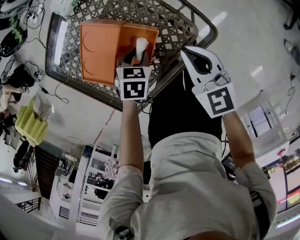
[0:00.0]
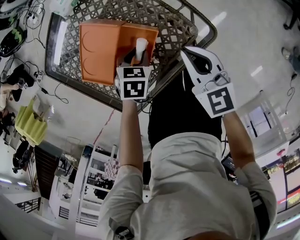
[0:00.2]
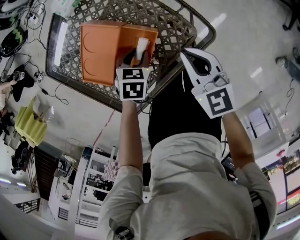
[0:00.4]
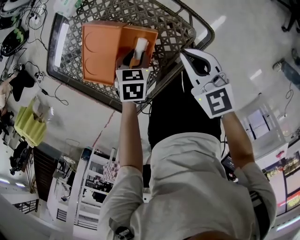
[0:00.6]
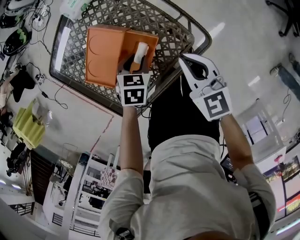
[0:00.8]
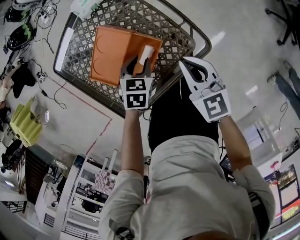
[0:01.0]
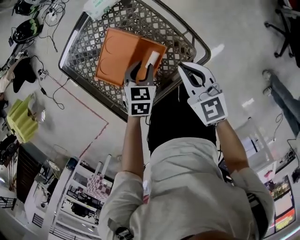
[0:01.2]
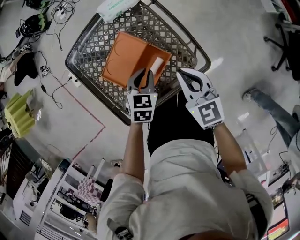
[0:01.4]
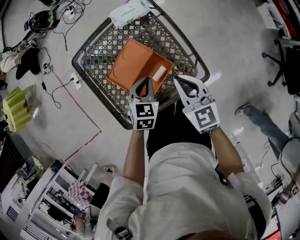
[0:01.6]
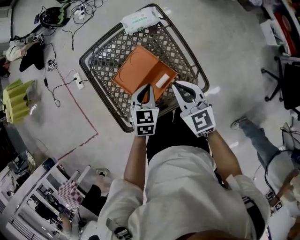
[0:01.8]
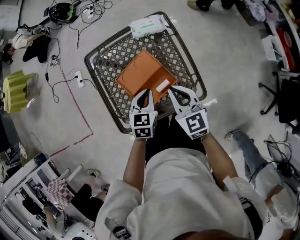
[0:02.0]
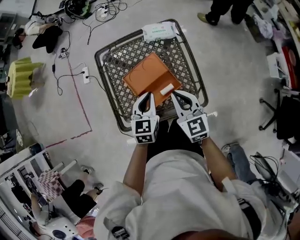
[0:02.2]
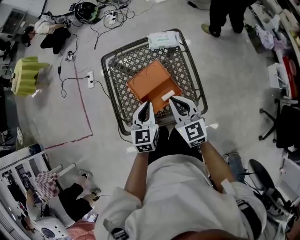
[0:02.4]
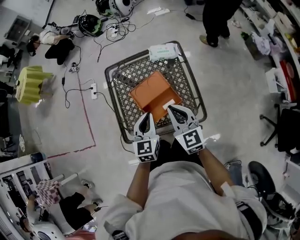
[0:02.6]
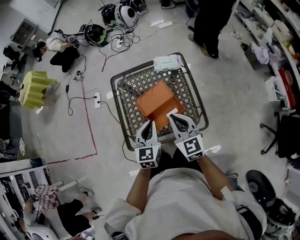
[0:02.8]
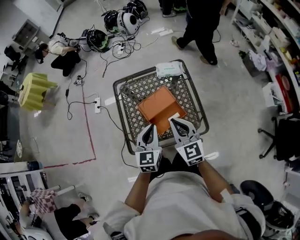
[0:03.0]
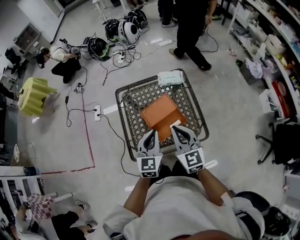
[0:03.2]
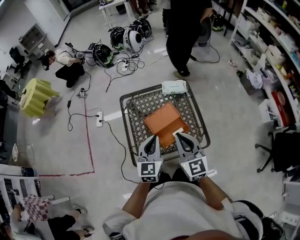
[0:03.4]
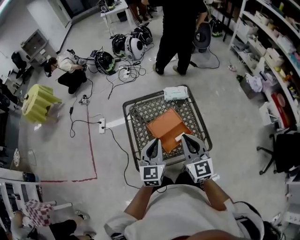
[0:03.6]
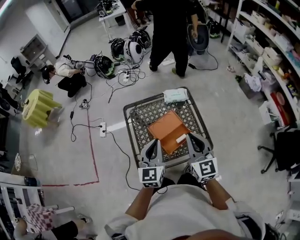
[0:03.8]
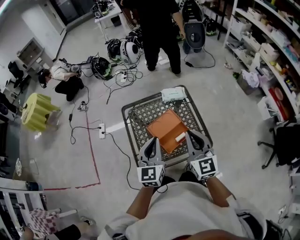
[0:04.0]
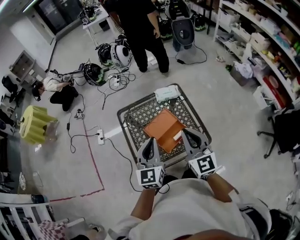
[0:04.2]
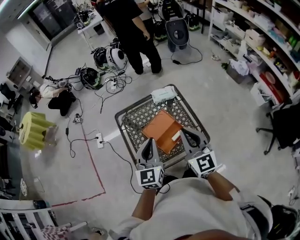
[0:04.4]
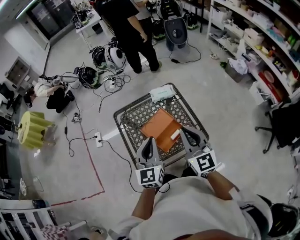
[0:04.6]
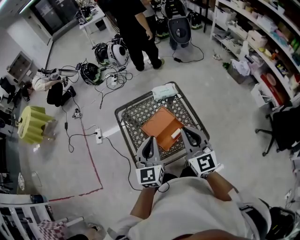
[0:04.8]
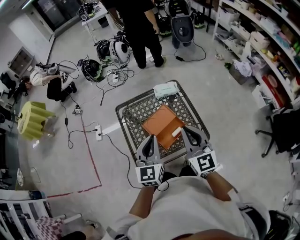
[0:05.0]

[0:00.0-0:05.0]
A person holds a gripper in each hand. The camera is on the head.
0:00.0 to 0:01.6: The grippers both shift upward by about 10 cm. The left gripper swivels approximately 30 degrees, and closes its fingers.
0:01.6 to 0:03.4: The grippers both shift upward and to the left by some 25 cm. The left gripper points its fingers some 30 degrees further upward.
0:03.4 to 0:05.0: The two grippers go about 5 cm upward.

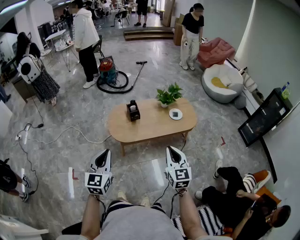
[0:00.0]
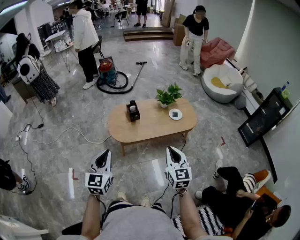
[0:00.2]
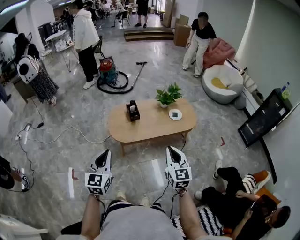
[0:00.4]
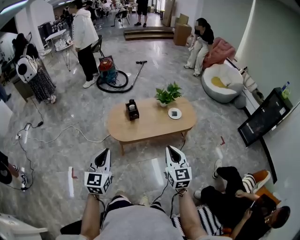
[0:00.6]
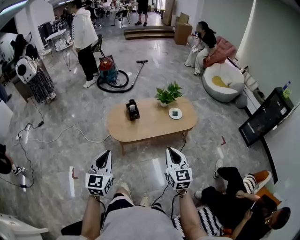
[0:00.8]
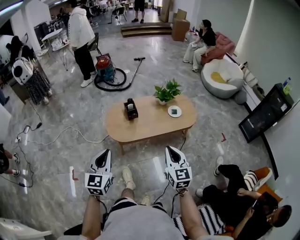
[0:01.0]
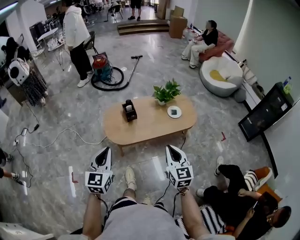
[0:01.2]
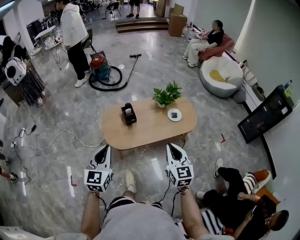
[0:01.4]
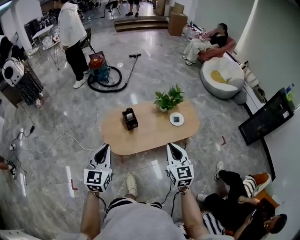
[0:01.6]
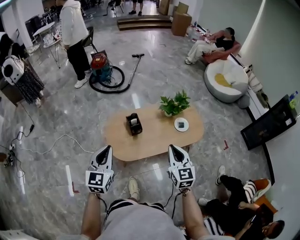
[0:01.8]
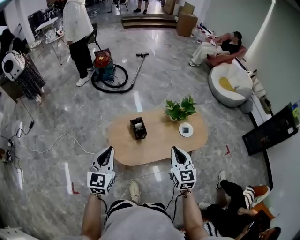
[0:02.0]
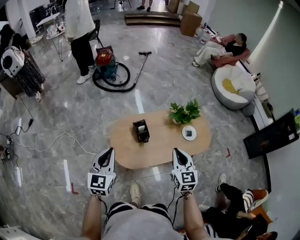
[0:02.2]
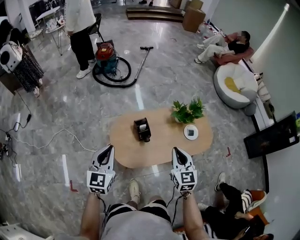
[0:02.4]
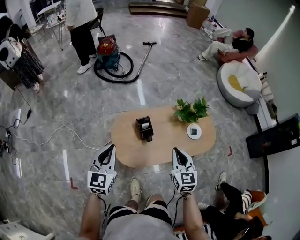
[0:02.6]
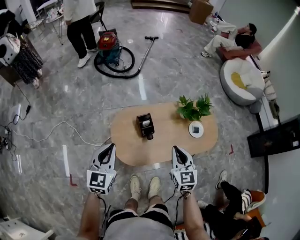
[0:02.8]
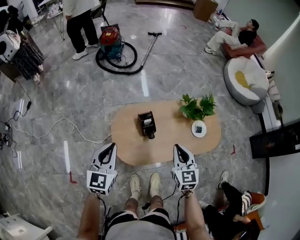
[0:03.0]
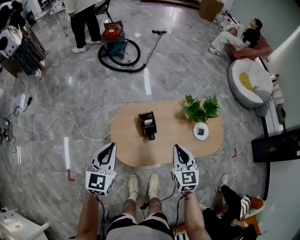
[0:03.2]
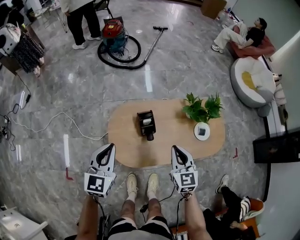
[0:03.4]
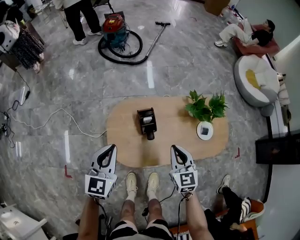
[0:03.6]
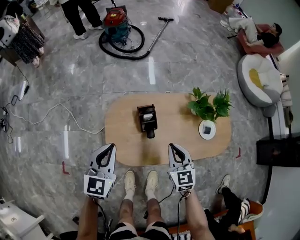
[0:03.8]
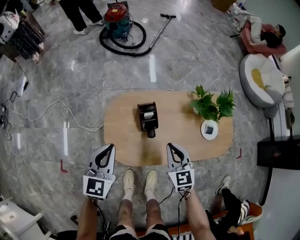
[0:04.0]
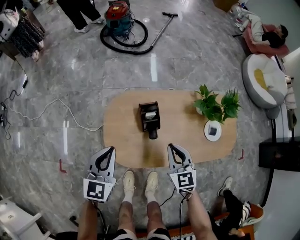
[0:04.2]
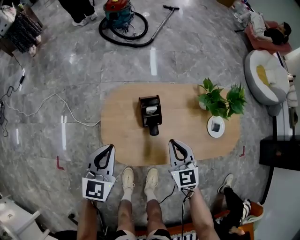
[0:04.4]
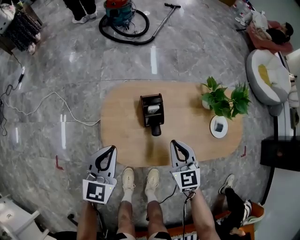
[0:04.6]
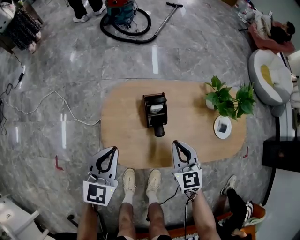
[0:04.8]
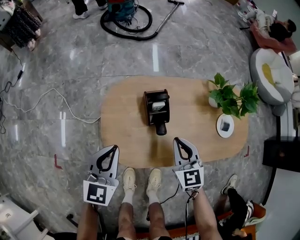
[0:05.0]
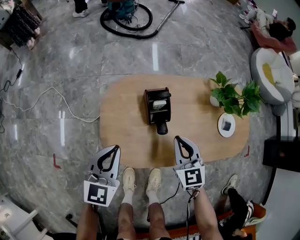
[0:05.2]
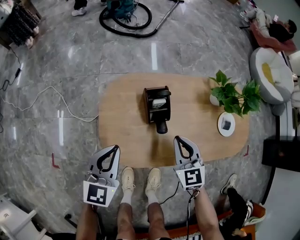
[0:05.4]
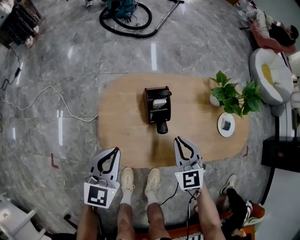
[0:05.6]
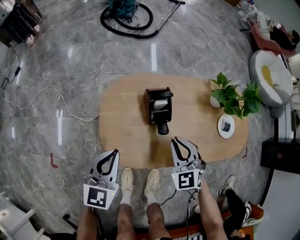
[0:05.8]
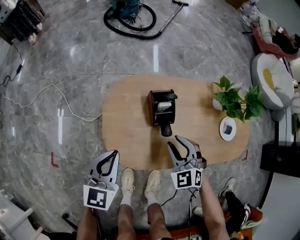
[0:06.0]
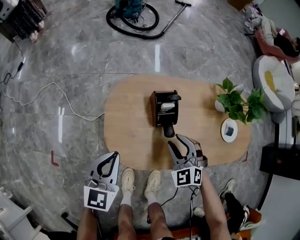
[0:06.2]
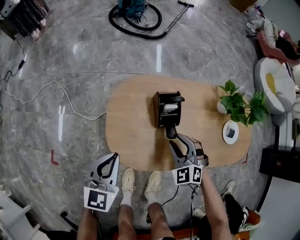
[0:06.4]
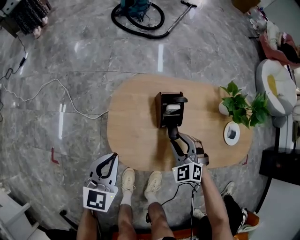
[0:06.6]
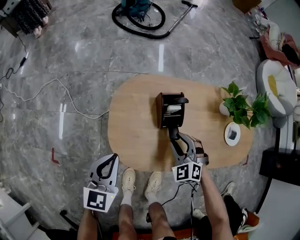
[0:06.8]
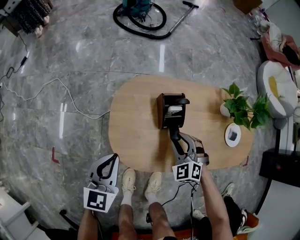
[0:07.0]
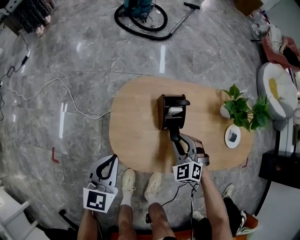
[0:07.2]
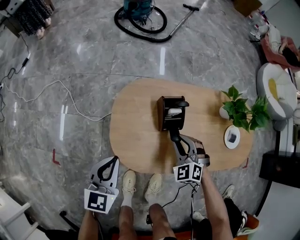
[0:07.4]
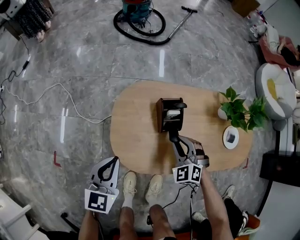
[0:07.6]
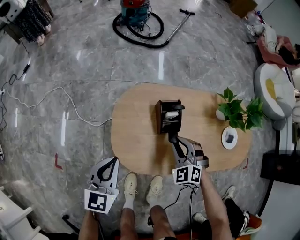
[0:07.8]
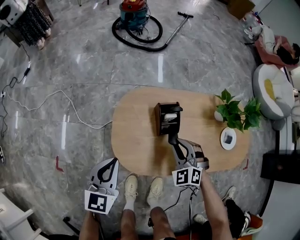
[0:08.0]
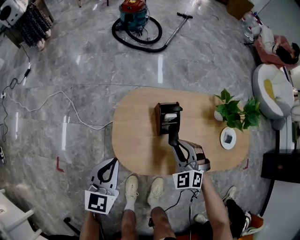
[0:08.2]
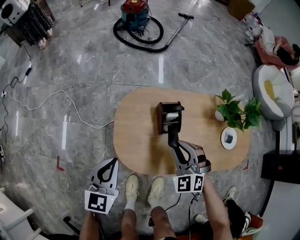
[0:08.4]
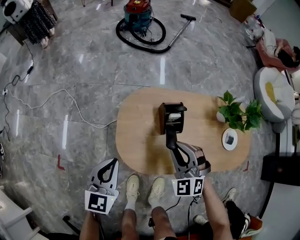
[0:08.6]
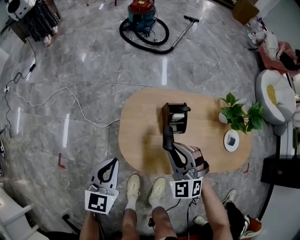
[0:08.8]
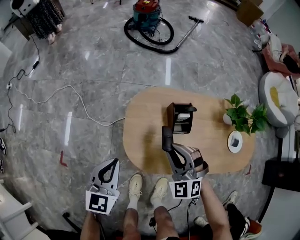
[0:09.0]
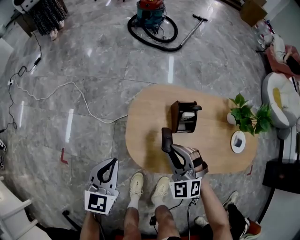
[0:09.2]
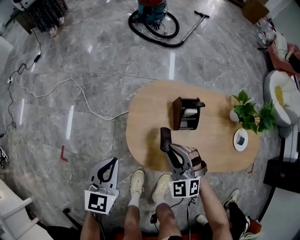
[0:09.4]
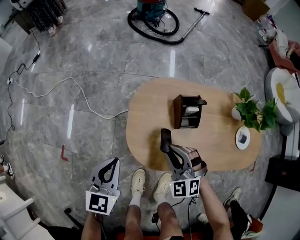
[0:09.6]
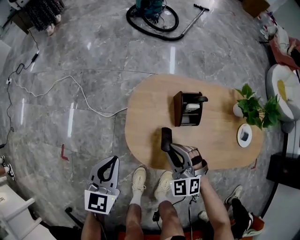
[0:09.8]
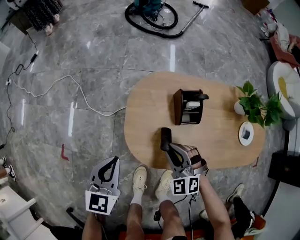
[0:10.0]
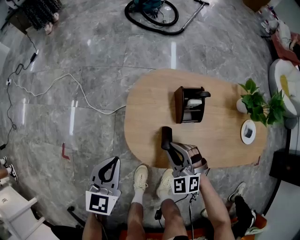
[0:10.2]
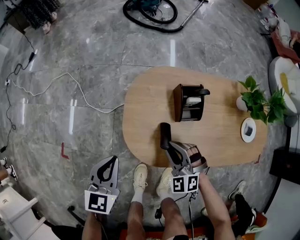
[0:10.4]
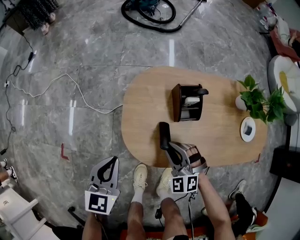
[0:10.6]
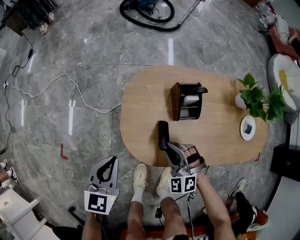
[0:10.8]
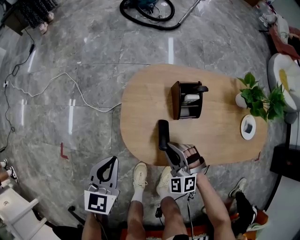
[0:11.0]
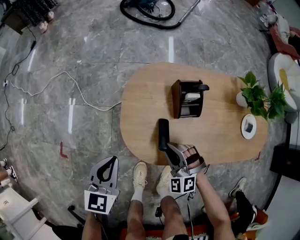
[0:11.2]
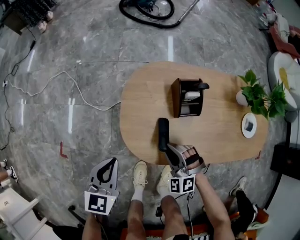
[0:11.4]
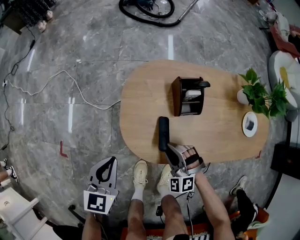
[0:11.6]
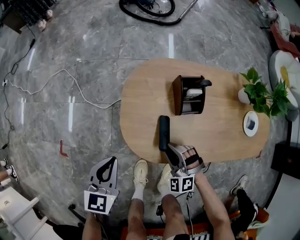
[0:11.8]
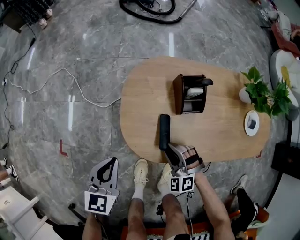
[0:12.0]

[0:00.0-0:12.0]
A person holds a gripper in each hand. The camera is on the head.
0:00.0 to 0:01.6: The grippers both shift forward by roughly 20 cm.
0:01.6 to 0:03.0: Both grippers travel together forward, downward and to the left, roughly 25 cm.
0:03.0 to 0:04.4: The two grippers go some 20 cm downward.
0:04.4 to 0:06.0: The two grippers go some 10 cm downward. The right gripper swivels approximately 30 degrees, and opens its fingers.
0:07.6 to 0:09.0: The right gripper moves upward and to the left, some 15 cm, while the left gripper travels to the left by roughly 5 cm.
0:09.0 to 0:10.4: The left gripper heads downward, covering about 5 cm; the right gripper shifts about 15 cm downward.
0:10.4 to 0:12.0: The right gripper is displaced downward by approximately 5 cm.

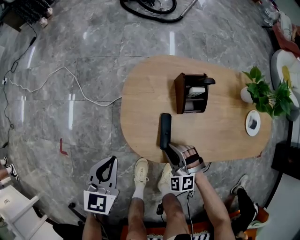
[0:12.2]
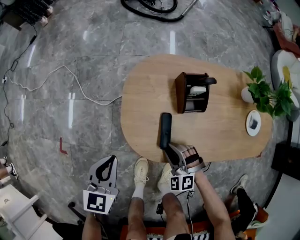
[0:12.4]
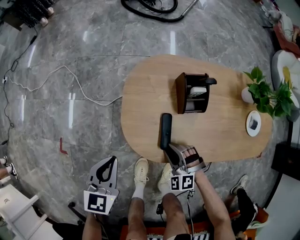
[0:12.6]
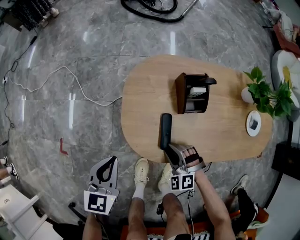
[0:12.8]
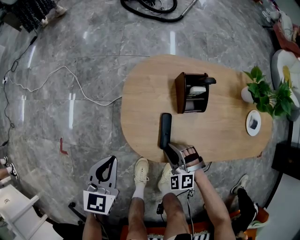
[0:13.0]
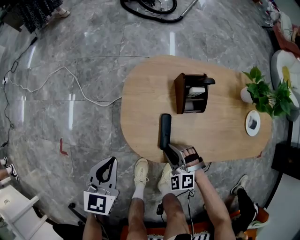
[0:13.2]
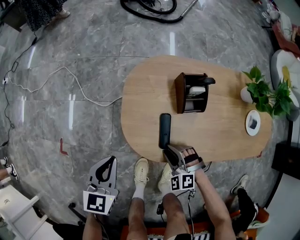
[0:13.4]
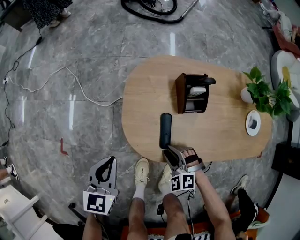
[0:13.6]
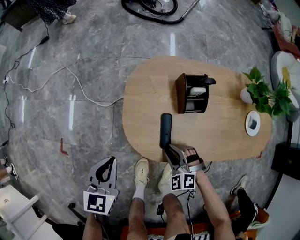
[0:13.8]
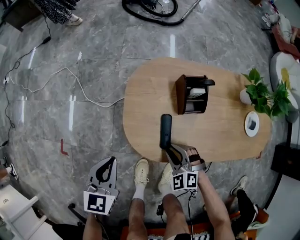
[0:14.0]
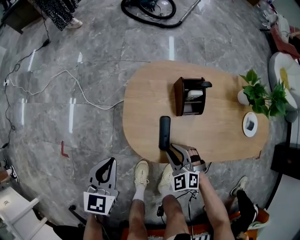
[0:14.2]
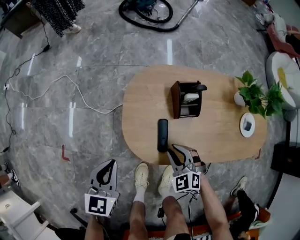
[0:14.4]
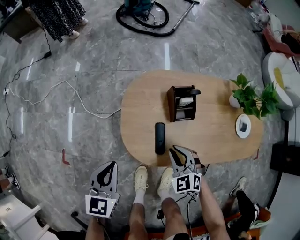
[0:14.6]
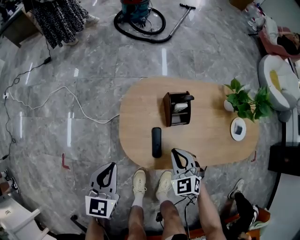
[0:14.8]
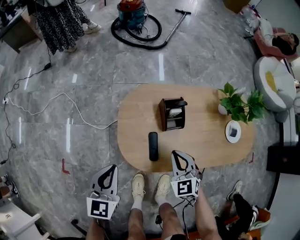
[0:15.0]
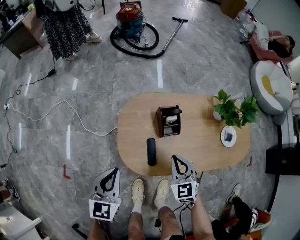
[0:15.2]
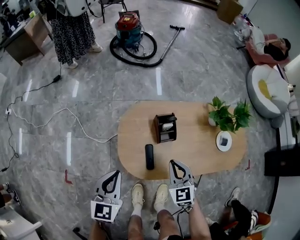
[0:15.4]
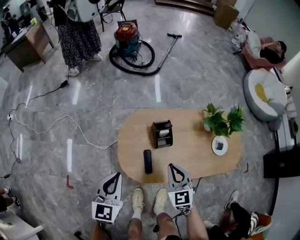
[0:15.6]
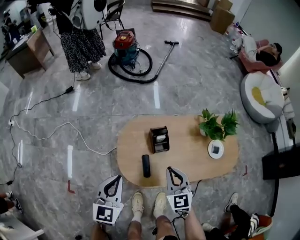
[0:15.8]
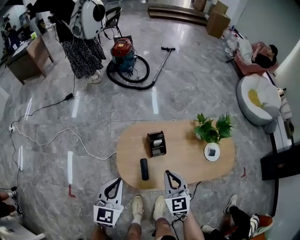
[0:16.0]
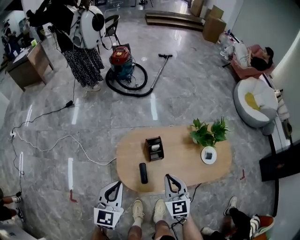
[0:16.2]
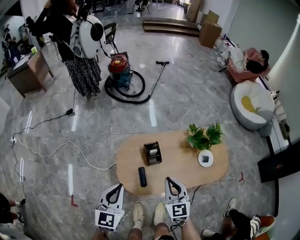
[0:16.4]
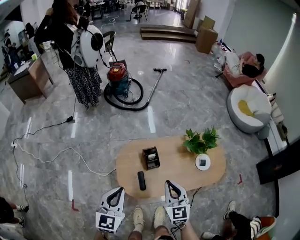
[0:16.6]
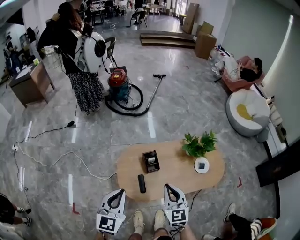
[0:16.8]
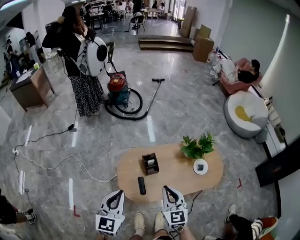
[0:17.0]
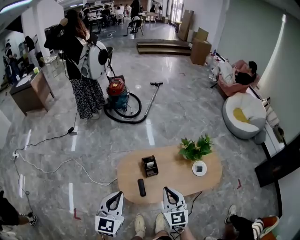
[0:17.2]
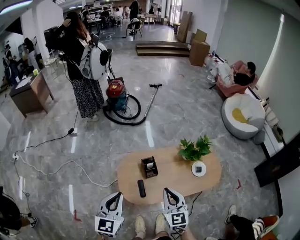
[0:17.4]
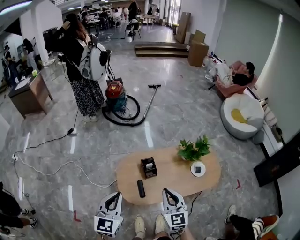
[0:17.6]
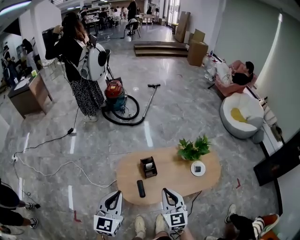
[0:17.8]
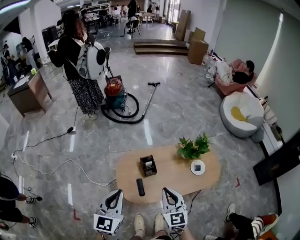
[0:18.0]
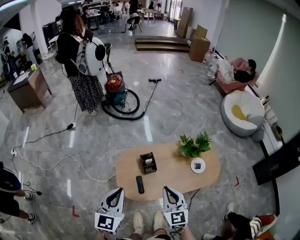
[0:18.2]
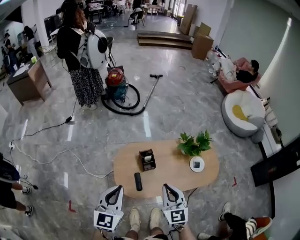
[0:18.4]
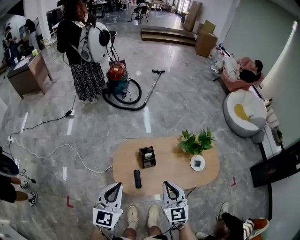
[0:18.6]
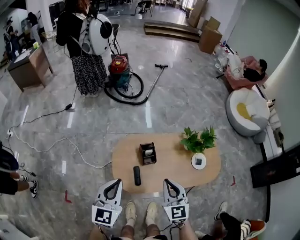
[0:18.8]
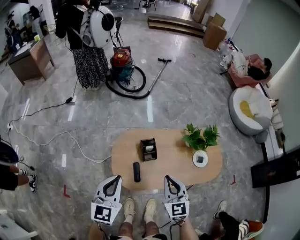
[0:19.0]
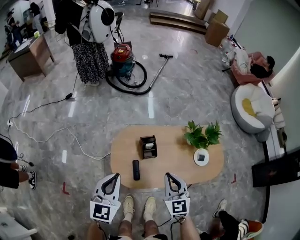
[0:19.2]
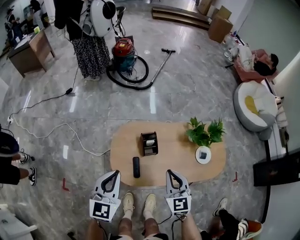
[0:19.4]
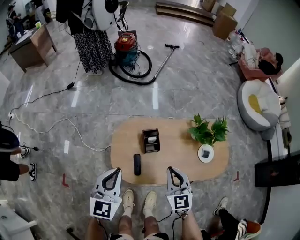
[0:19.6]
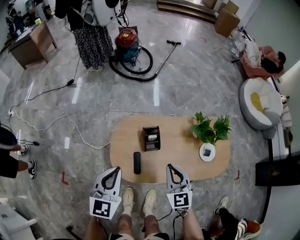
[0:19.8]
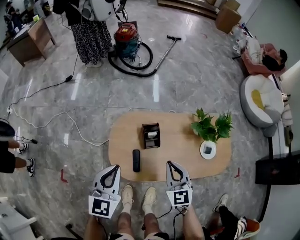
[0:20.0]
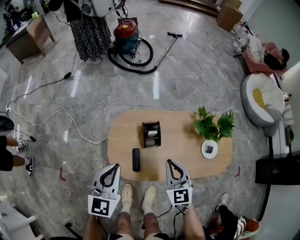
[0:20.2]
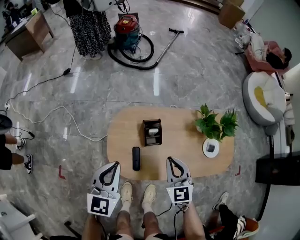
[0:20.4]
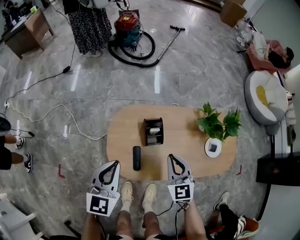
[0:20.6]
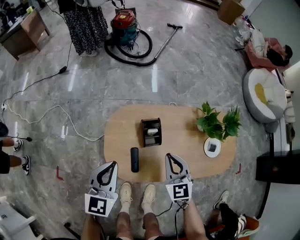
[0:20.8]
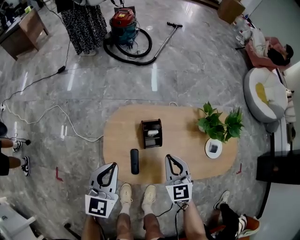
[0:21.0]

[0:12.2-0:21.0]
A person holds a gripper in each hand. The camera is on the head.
0:12.2 to 0:13.6: The grippers make only small movements.
0:13.6 to 0:15.2: The left gripper travels upward by roughly 15 cm, while the right gripper shifts about 20 cm upward, rotates some 40 degrees, and closes.
0:15.2 to 0:16.6: Both grippers travel together upward, approximately 25 cm. The right gripper changes its angle by some 20 degrees.
0:16.6 to 0:18.0: Both grippers travel together upward, about 5 cm.
0:18.0 to 0:19.6: The two grippers go approximately 15 cm downward and forward.
0:19.6 to 0:21.0: The right gripper is displaced downward and forward by some 15 cm. Meanwhile the left gripper is displaced downward by approximately 10 cm.
